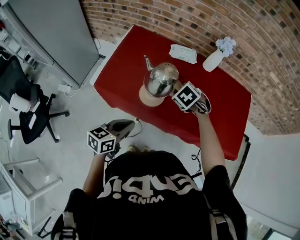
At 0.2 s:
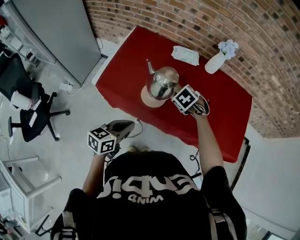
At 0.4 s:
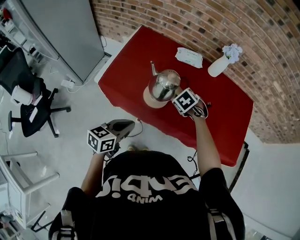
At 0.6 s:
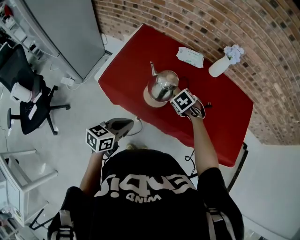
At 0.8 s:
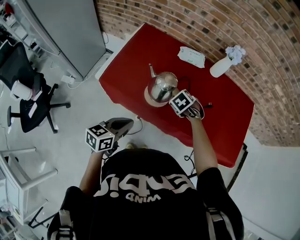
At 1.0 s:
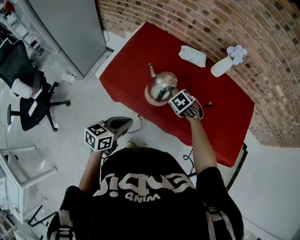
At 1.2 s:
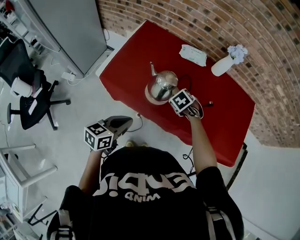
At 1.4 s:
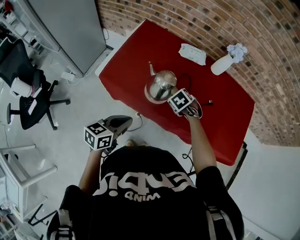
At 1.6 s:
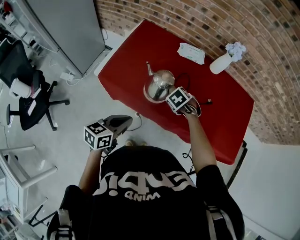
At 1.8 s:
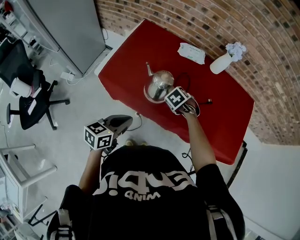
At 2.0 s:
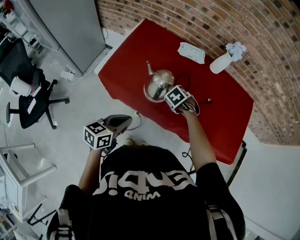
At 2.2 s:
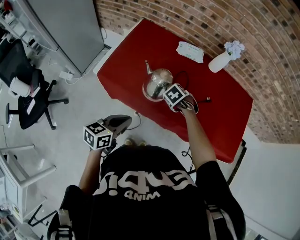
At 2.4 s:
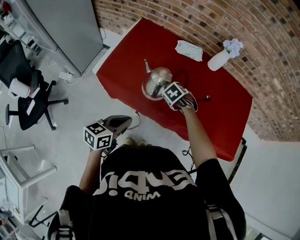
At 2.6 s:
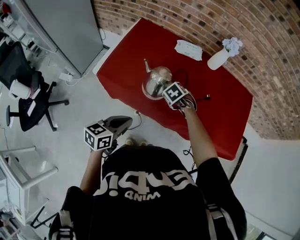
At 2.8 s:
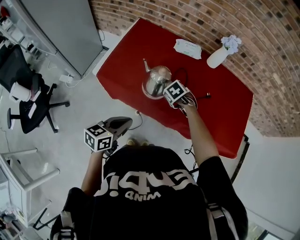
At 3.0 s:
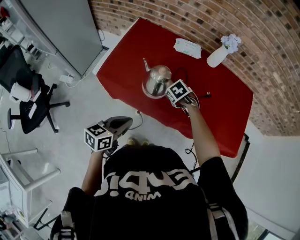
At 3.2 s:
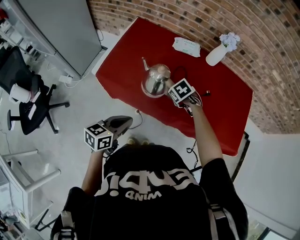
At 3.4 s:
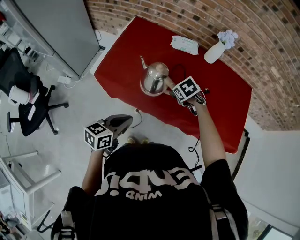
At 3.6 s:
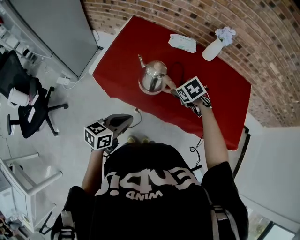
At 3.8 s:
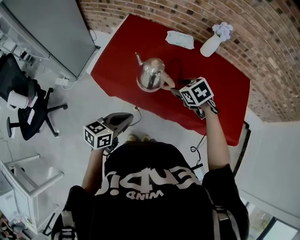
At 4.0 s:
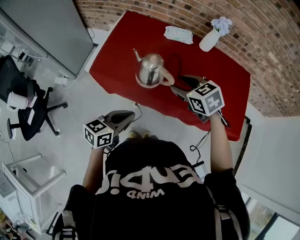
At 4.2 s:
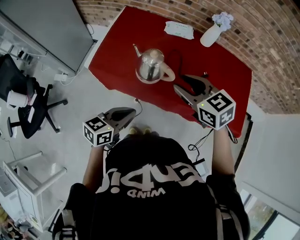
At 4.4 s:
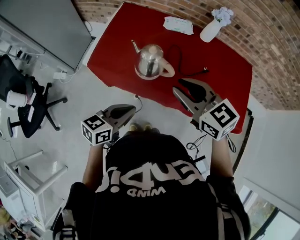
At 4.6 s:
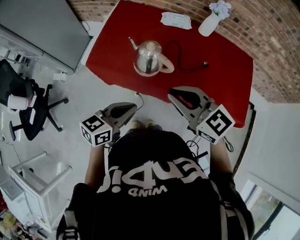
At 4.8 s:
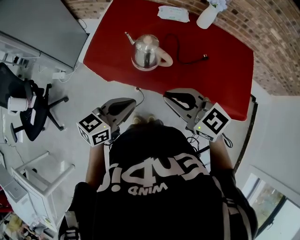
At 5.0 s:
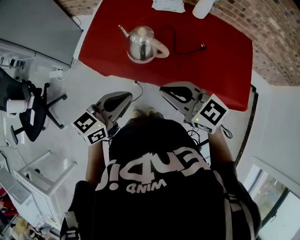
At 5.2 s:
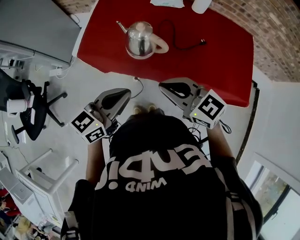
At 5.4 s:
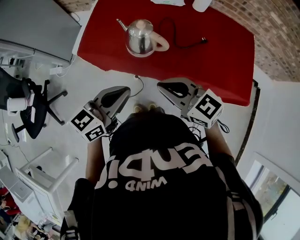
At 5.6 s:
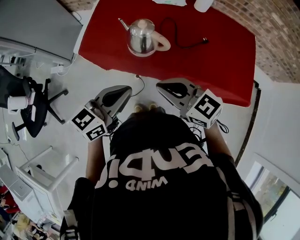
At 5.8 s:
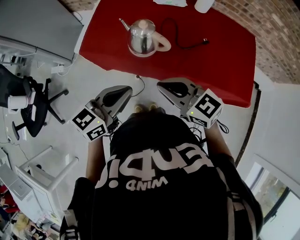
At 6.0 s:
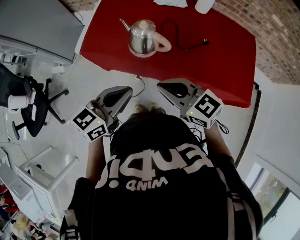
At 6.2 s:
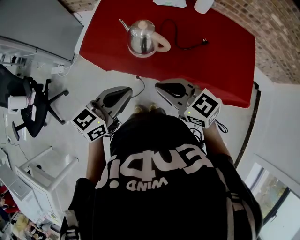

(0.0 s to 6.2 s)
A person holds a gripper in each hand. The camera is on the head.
0.0 s - 1.6 s: The right gripper travels downward by approximately 10 cm.
1.6 s - 3.2 s: The right gripper opens.
3.2 s - 4.6 s: The right gripper is displaced upward and backward by some 30 cm, points its fingers roughly 60 degrees further upward, and closes, while the left gripper shifts by some 5 cm.
4.6 s - 6.2 s: The right gripper travels downward by about 5 cm.

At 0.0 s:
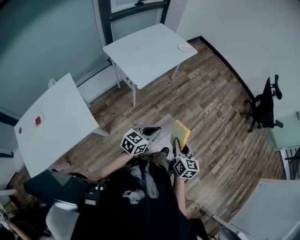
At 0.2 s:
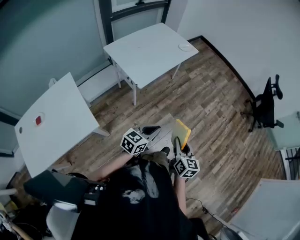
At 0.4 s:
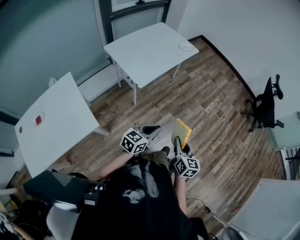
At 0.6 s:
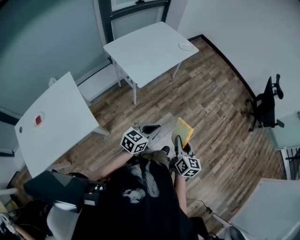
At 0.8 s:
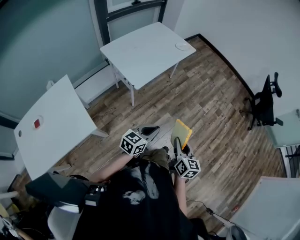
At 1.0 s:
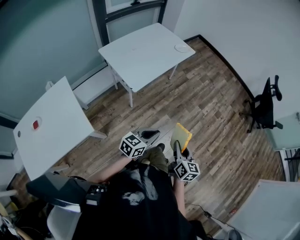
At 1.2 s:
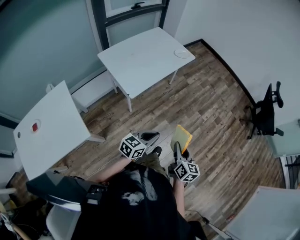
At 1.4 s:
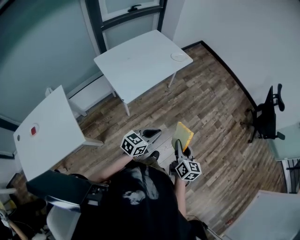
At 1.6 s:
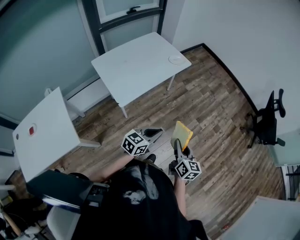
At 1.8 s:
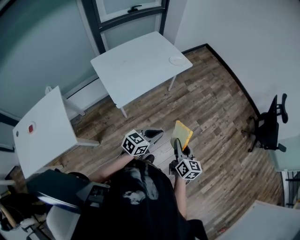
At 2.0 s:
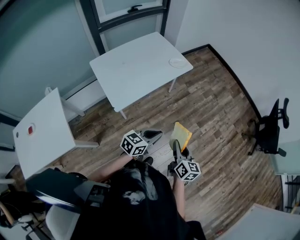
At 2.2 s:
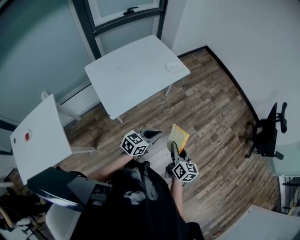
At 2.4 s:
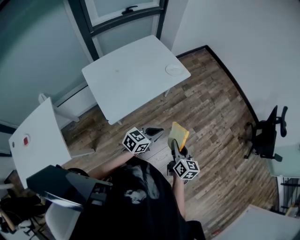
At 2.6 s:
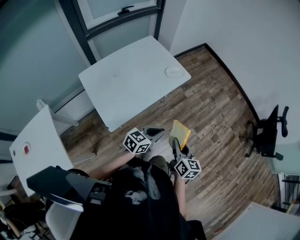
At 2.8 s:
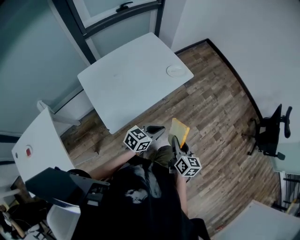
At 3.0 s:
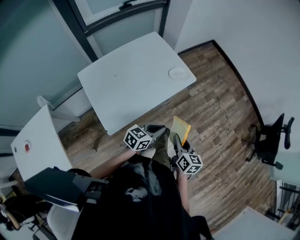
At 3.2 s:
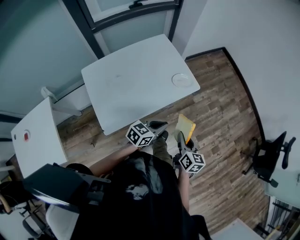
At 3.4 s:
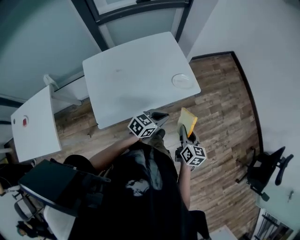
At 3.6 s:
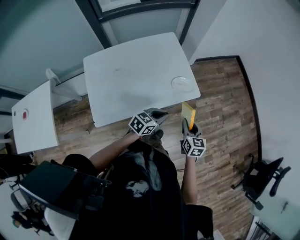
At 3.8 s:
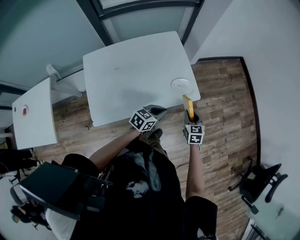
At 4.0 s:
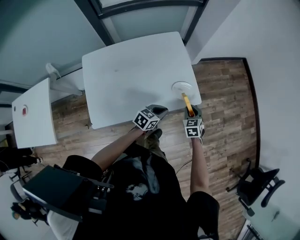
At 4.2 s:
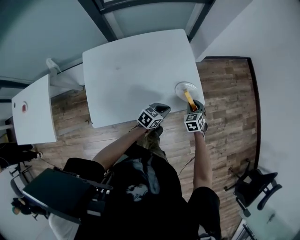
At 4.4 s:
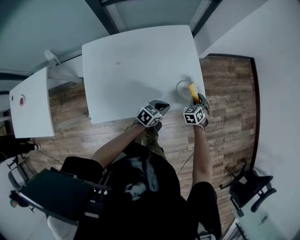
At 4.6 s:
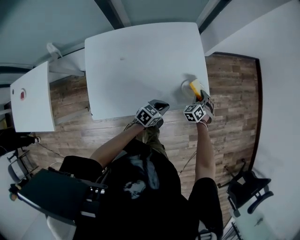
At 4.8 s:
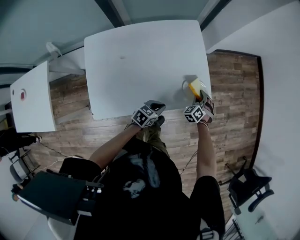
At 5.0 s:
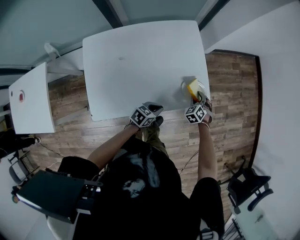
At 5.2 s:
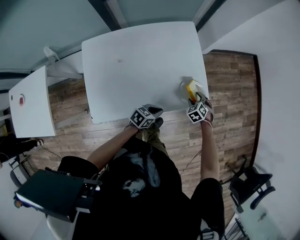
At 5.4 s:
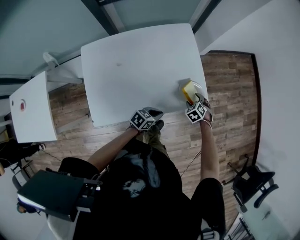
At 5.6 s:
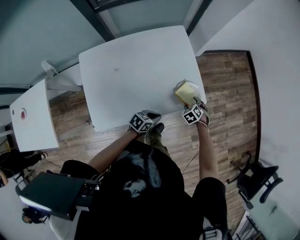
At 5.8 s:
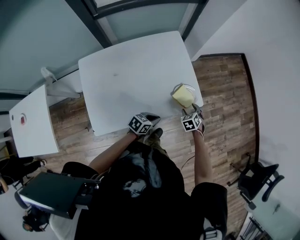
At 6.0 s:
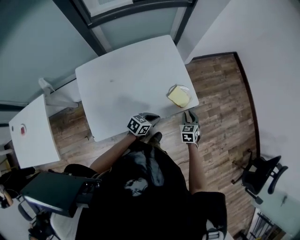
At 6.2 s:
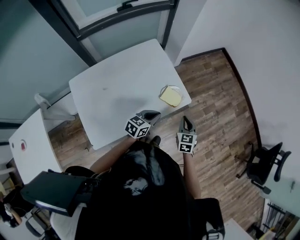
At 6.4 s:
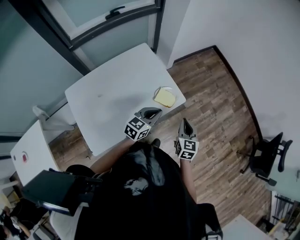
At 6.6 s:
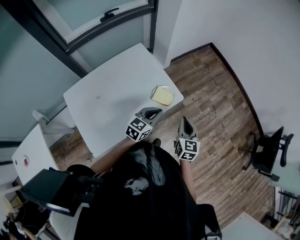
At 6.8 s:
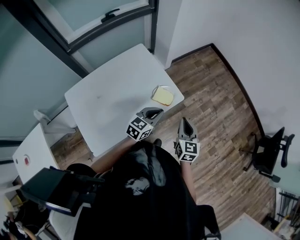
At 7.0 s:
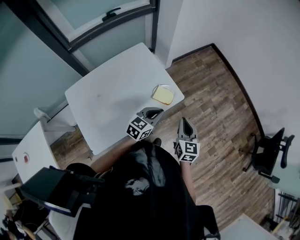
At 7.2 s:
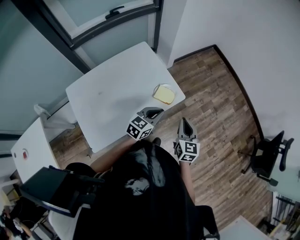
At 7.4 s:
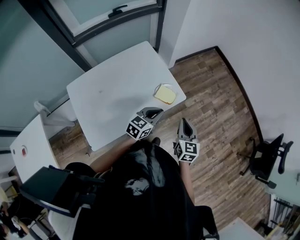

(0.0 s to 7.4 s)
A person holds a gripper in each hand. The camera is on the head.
0.0 s - 1.4 s: Both grippers move forward, roughly 15 cm.
1.4 s - 3.0 s: The grippers both shift forward by roughly 35 cm.
3.0 s - 4.4 s: The right gripper travels forward and downward by approximately 50 cm, and rotates around the line of its fingers by some 70 degrees, counterclockwise from behind, while the left gripper shifts some 30 cm forward and downward, and turns by roughly 30 degrees.
4.4 s - 6.0 s: The left gripper travels backward by roughly 5 cm. Meanwhile the right gripper shifts roughly 10 cm backward, swivels about 20 degrees, and opens and closes again.
6.0 s - 7.4 s: The right gripper goes approximately 20 cm upward and backward, and changes its angle by some 40 degrees, while the left gripper goes some 15 cm upward and to the right, and changes its angle by about 20 degrees.

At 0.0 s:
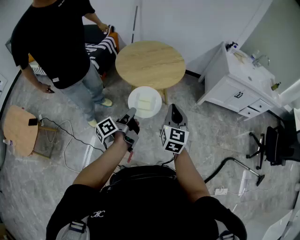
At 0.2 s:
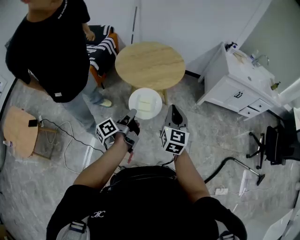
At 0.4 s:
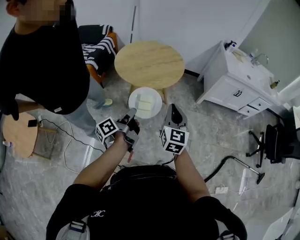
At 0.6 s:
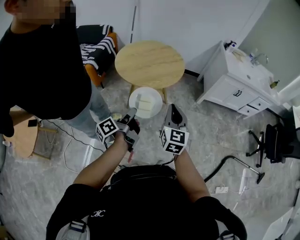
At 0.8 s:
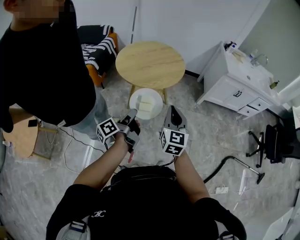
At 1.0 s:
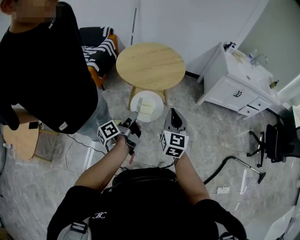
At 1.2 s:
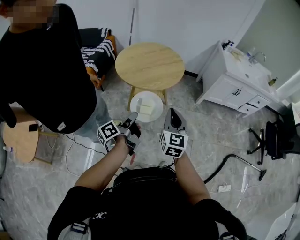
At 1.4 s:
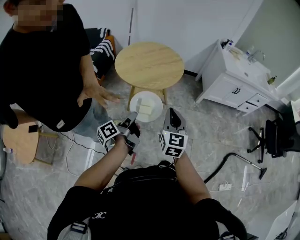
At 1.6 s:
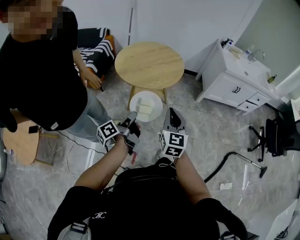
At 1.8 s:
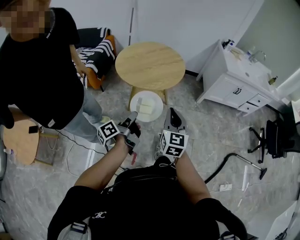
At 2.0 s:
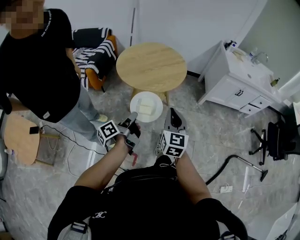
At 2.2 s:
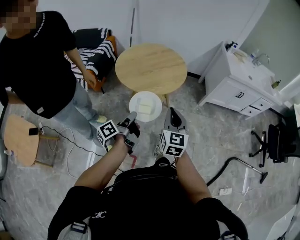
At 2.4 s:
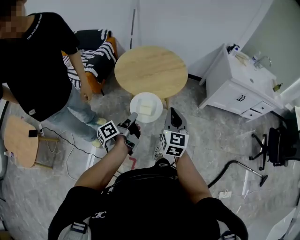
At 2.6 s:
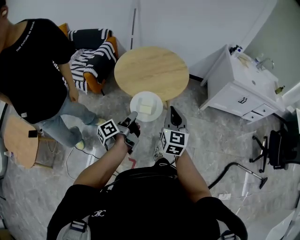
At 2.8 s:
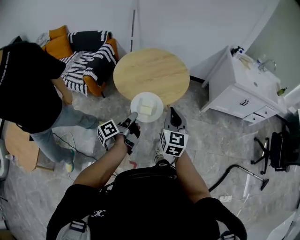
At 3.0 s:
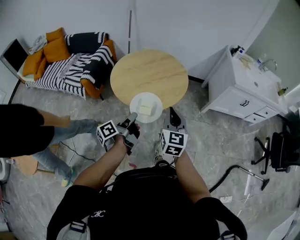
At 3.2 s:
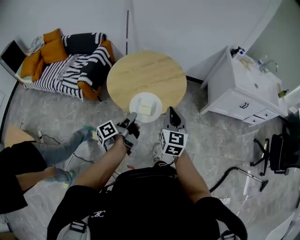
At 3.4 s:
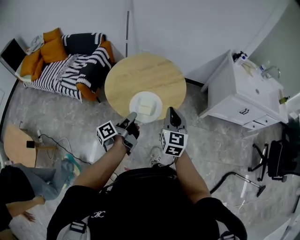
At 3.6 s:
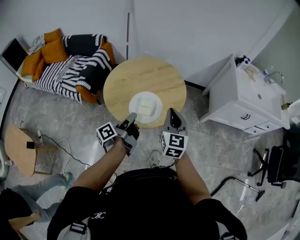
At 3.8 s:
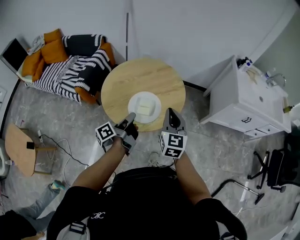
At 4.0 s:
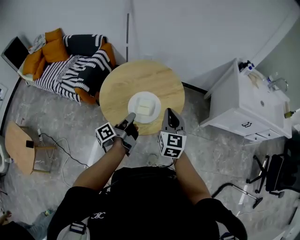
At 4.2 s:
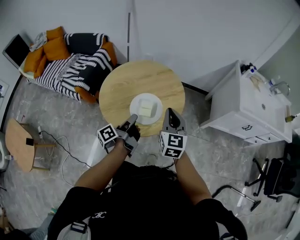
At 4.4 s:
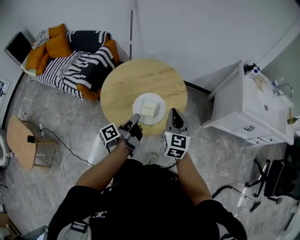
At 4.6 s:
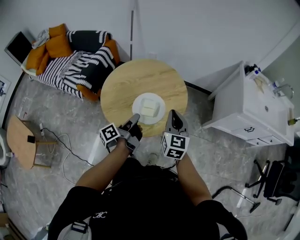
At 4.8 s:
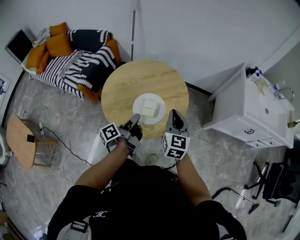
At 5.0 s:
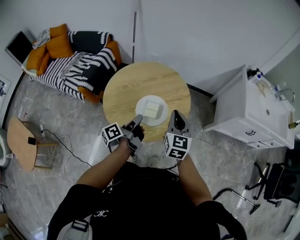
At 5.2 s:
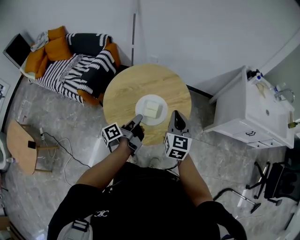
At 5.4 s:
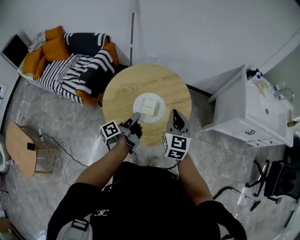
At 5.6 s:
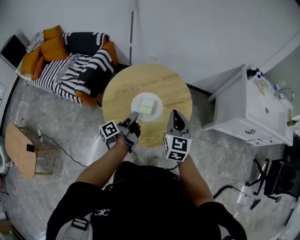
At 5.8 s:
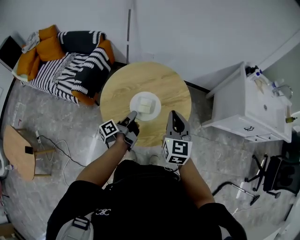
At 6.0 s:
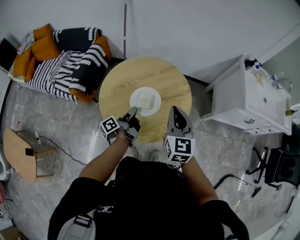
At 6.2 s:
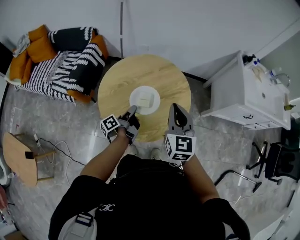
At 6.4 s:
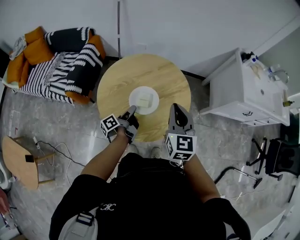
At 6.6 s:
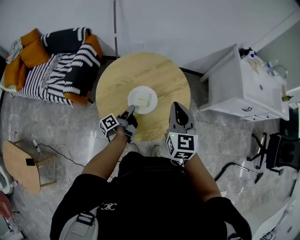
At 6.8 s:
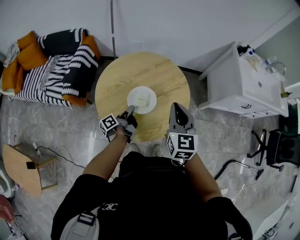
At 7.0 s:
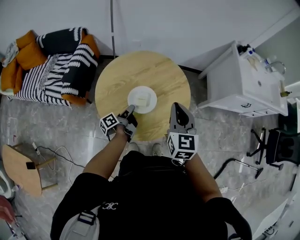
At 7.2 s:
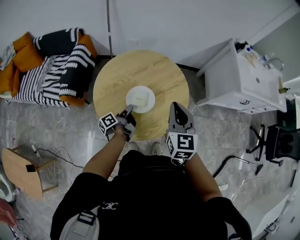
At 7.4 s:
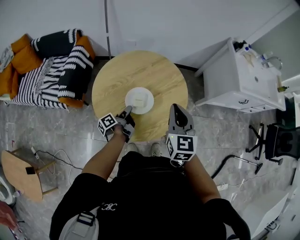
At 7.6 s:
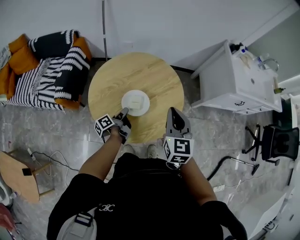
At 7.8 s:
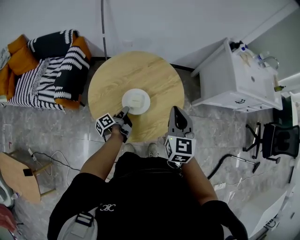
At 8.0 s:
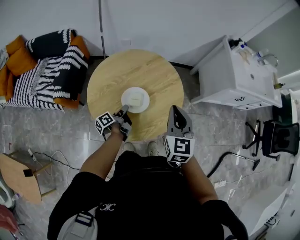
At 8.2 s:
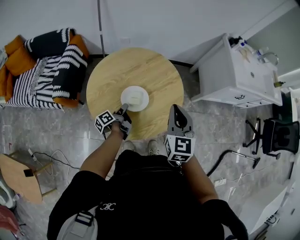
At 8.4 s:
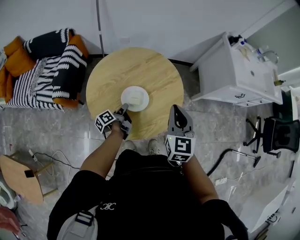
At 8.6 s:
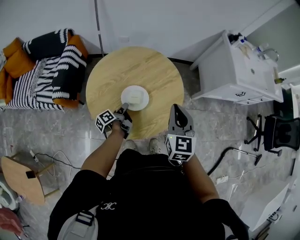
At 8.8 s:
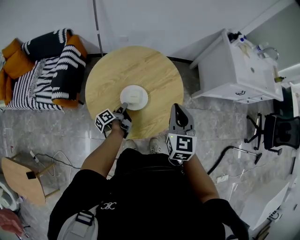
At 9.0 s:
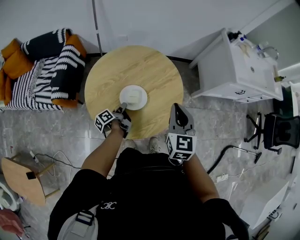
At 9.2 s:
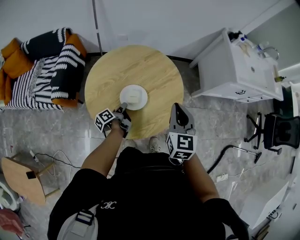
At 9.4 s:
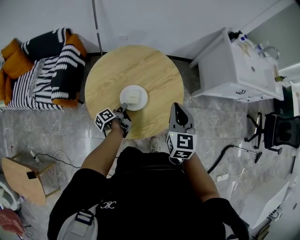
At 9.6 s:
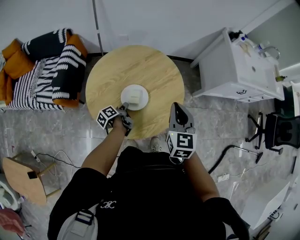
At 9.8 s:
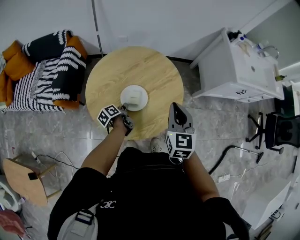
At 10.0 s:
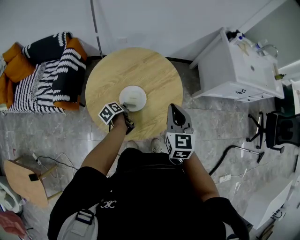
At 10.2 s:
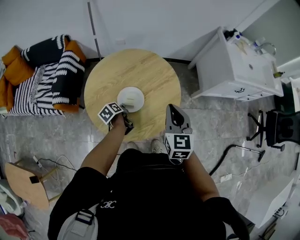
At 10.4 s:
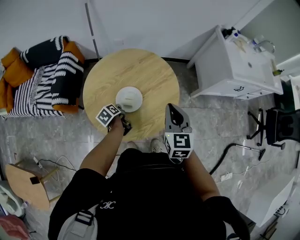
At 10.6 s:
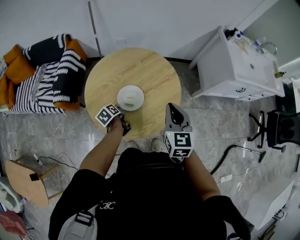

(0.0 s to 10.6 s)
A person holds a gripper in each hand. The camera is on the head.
1.6 s - 3.0 s: The right gripper shifts by some 20 cm.
3.0 s - 4.6 s: The right gripper ends up approximately 20 cm from where it was.
4.6 s - 6.0 s: The right gripper shifts by approximately 10 cm.
